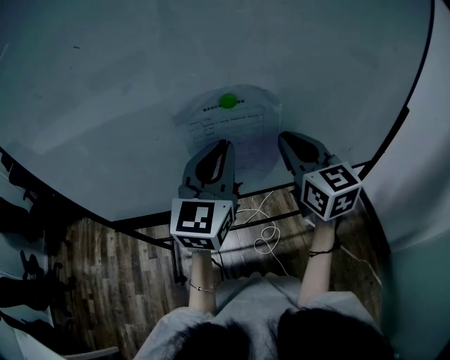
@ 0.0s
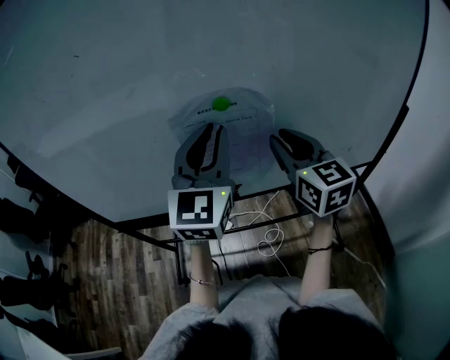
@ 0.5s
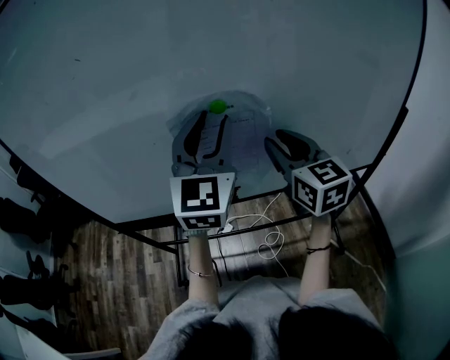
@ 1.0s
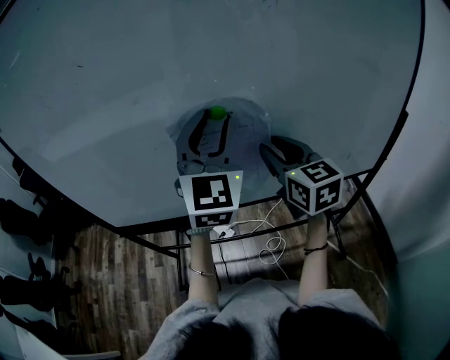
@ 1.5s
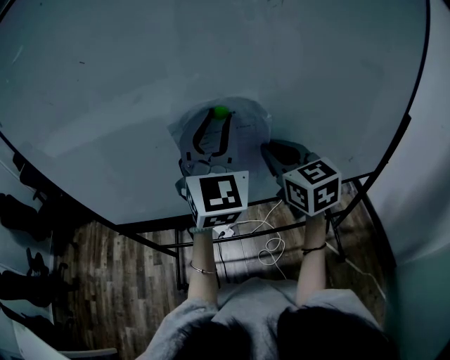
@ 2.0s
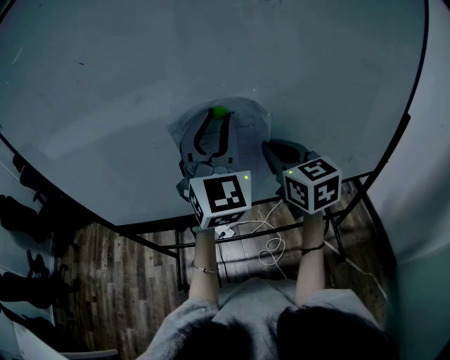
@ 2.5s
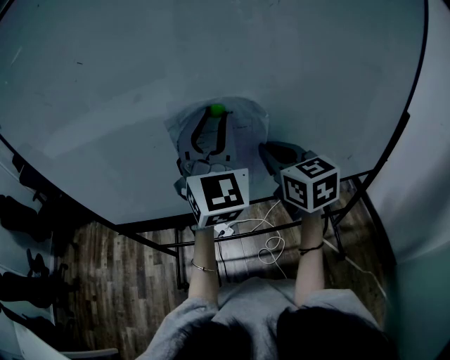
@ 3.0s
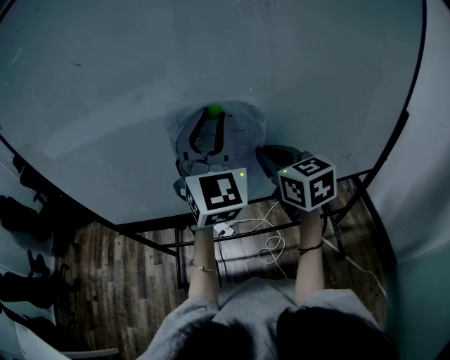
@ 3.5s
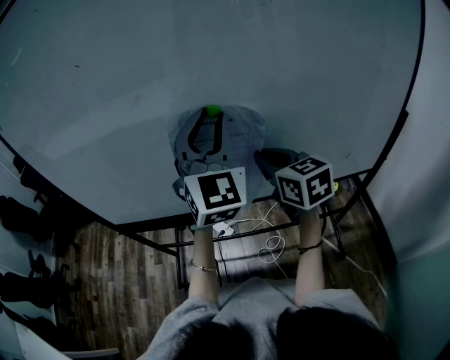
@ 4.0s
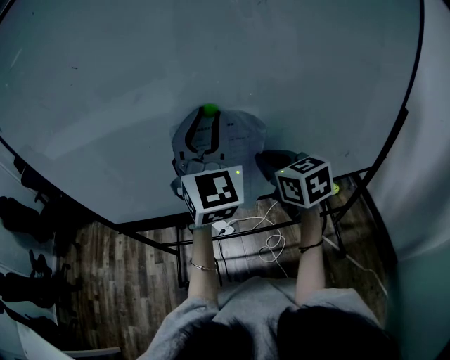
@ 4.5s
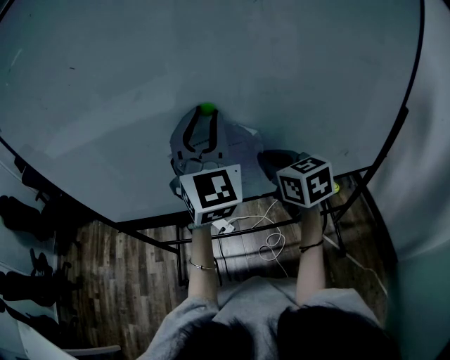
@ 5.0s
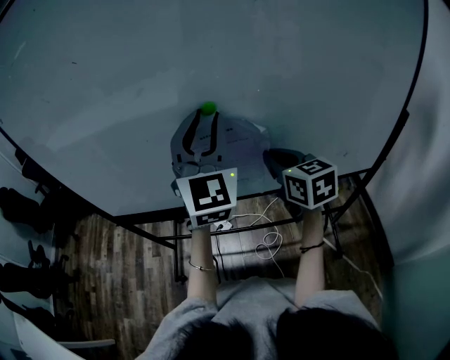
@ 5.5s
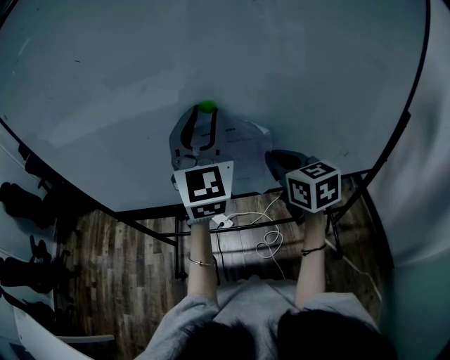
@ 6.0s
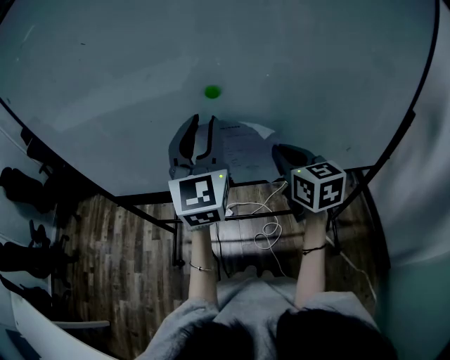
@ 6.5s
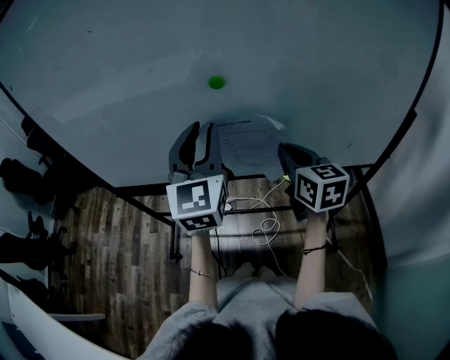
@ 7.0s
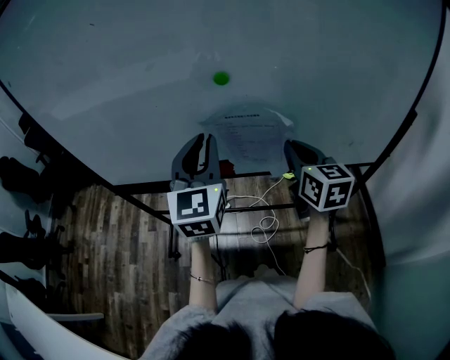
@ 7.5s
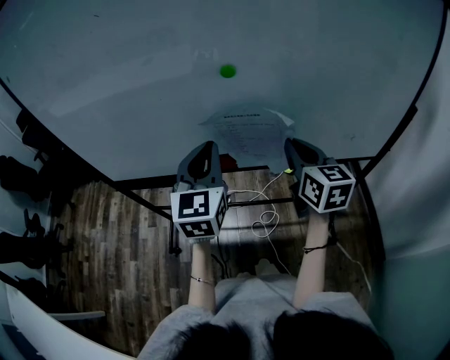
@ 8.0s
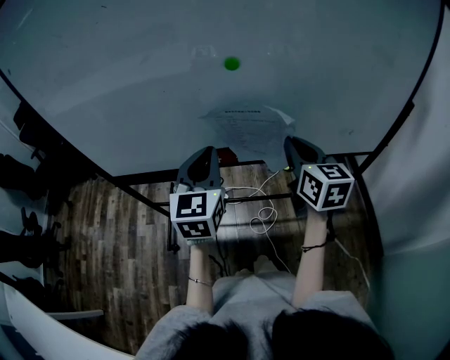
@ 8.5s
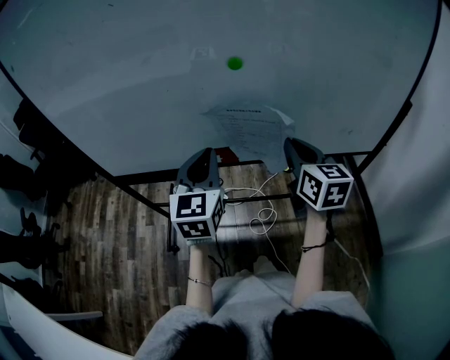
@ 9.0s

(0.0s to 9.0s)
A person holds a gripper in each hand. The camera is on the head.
0.0s - 2.0s: The left gripper goes some 5 cm upward, swivels some 30 degrees, and opens.
2.0s - 4.5s: The grippers move only a little.
4.5s - 7.0s: The left gripper travels downward by approximately 5 cm, and swivels some 20 degrees, while the right gripper shifts by some 5 cm.
7.0s - 9.0s: The left gripper shifts roughly 10 cm downward, and closes.

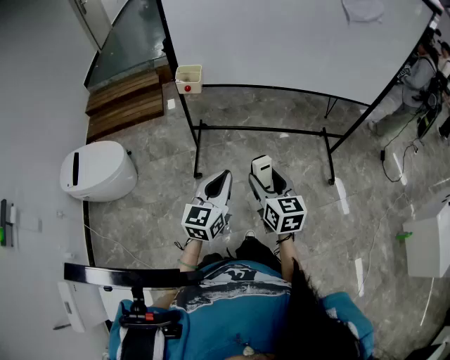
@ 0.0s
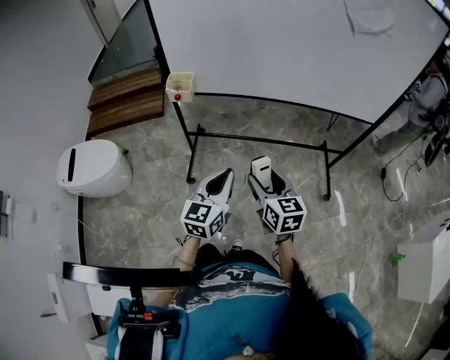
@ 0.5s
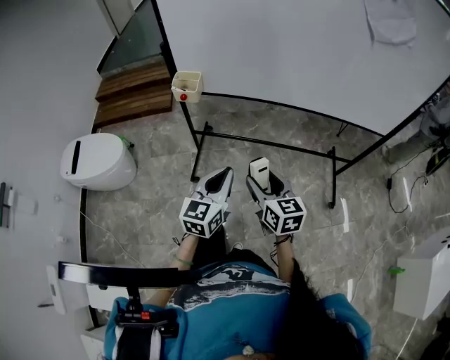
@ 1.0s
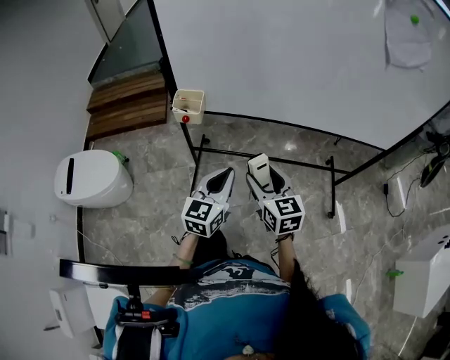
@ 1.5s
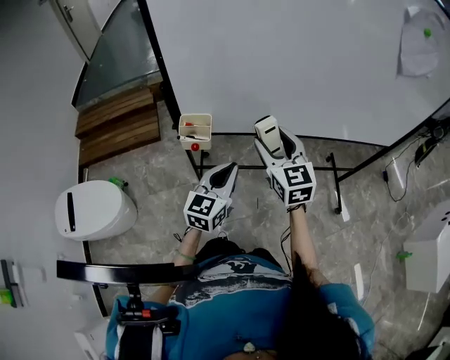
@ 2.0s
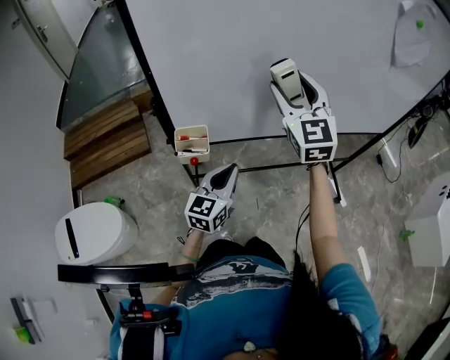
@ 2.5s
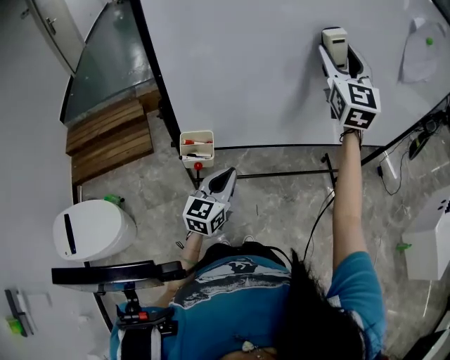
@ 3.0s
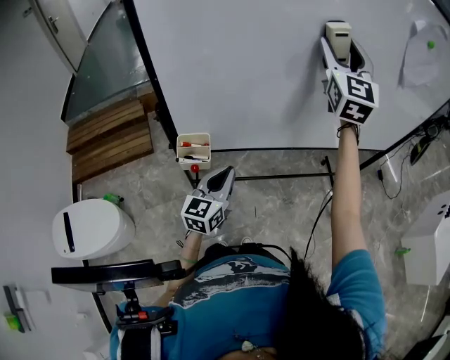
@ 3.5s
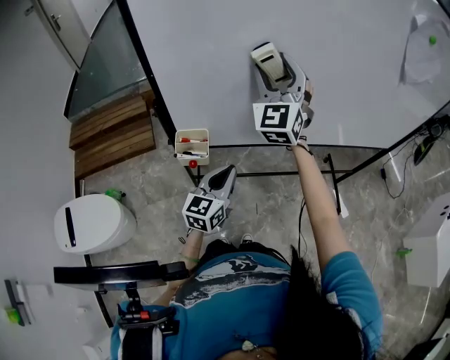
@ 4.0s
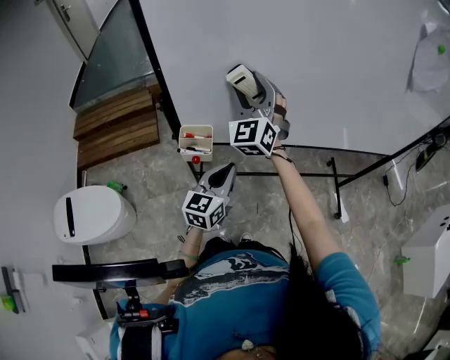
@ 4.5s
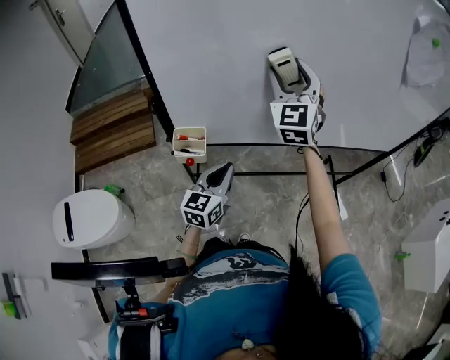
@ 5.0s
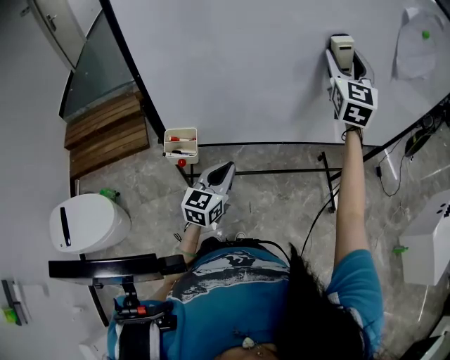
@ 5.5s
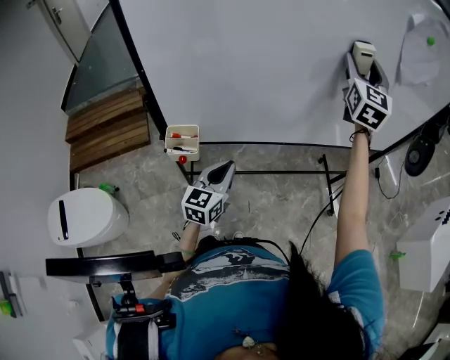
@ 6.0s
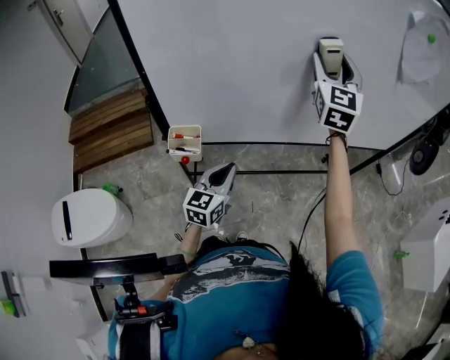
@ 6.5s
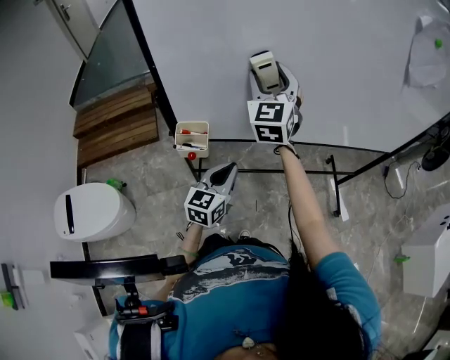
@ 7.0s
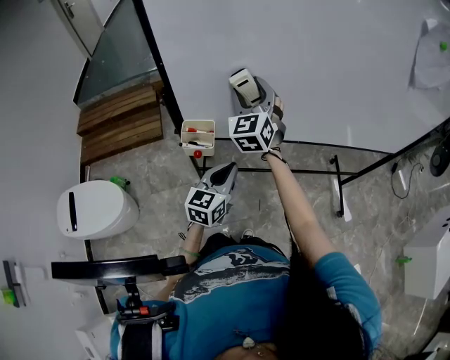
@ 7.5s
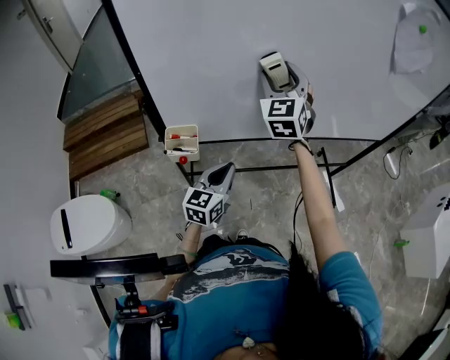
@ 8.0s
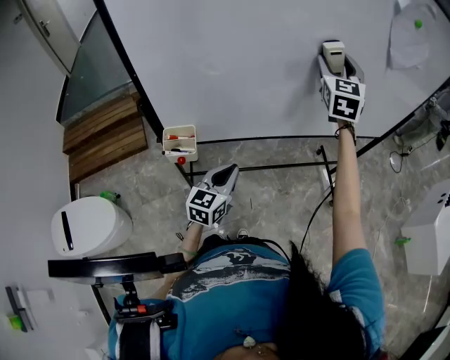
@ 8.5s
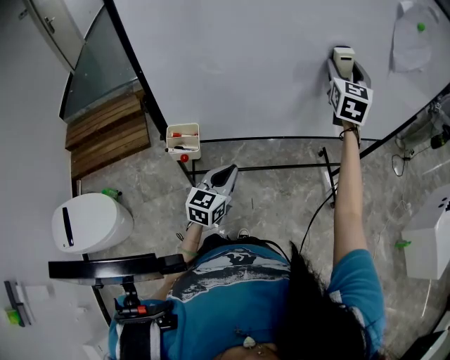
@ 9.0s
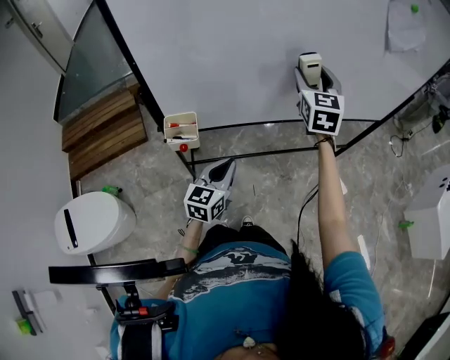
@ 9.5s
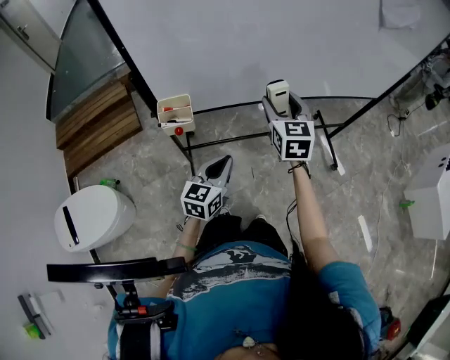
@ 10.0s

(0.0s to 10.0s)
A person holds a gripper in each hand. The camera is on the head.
0.0s - 2.0s: Both grippers travel together forward, roughly 35 cm. The right gripper swivels roughly 20 degrees.
2.0s - 4.0s: The right gripper shifts roughly 20 cm upward and forward, and turns by about 40 degrees, while the left gripper heads forward, covering some 5 cm.
4.0s - 6.0s: The right gripper is displaced to the right by some 25 cm, and rotates about 20 degrees.
6.0s - 8.0s: The right gripper goes some 20 cm to the left and downward, and changes its angle by approximately 20 degrees.
8.0s - 10.0s: The right gripper shifts approximately 20 cm downward, backward and to the right, and changes its angle by approximately 30 degrees; the left gripper heads backward, covering approximately 5 cm.

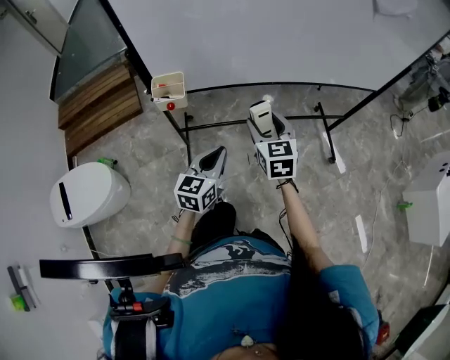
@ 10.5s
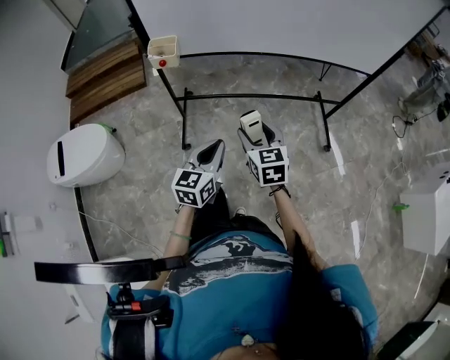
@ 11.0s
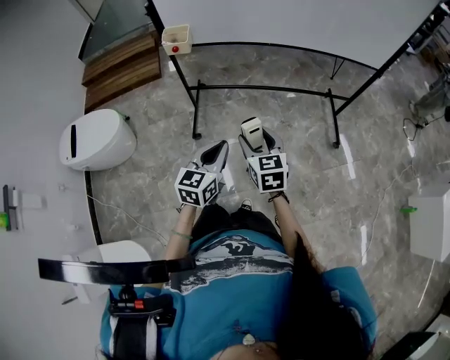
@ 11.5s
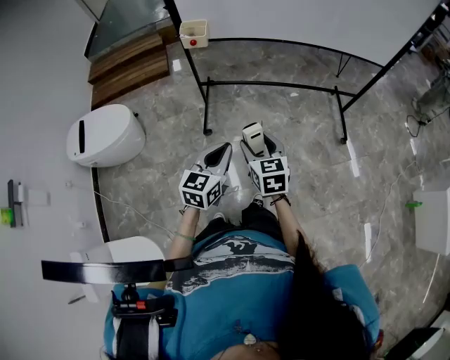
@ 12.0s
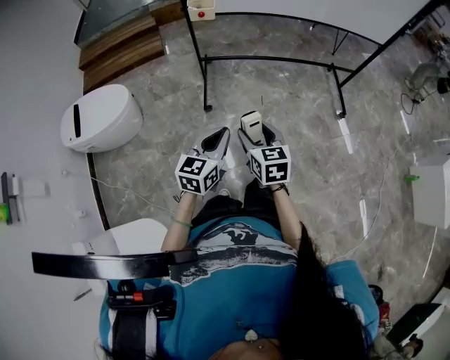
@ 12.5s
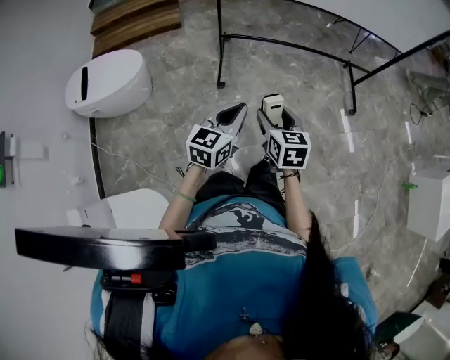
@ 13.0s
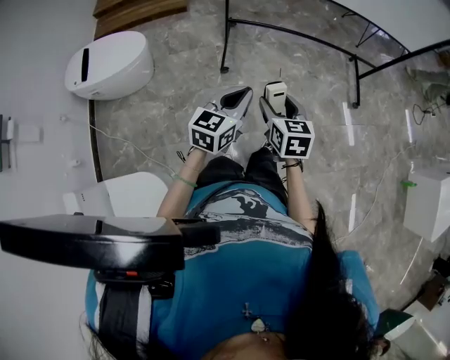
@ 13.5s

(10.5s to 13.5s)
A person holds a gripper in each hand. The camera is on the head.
10.5s - 12.0s: The two grippers go some 35 cm backward.
12.0s - 13.5s: The left gripper moves to the left and backward, roughly 15 cm. The right gripper shifts about 15 cm backward and to the left.

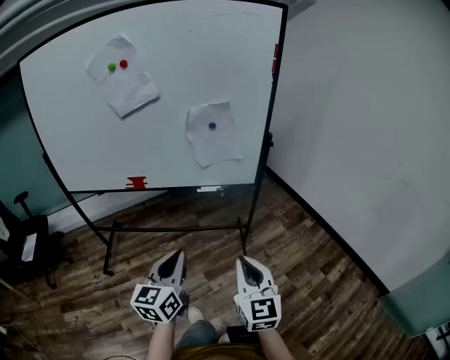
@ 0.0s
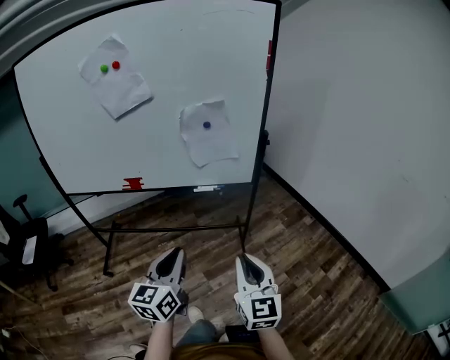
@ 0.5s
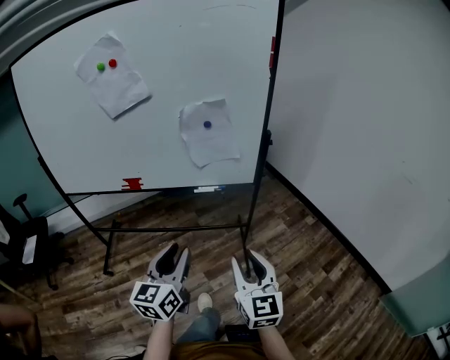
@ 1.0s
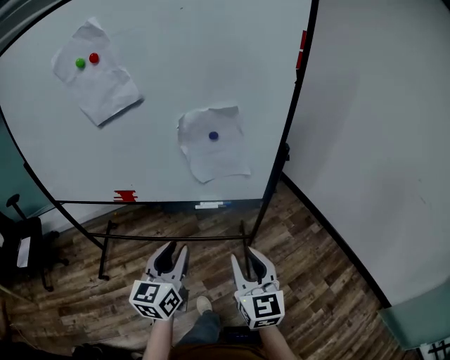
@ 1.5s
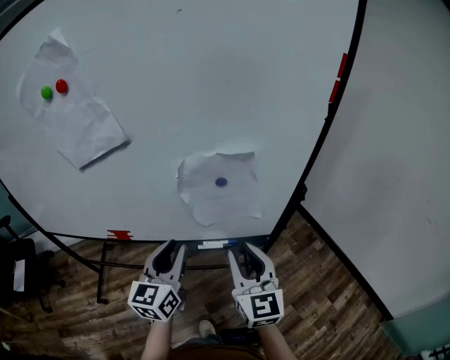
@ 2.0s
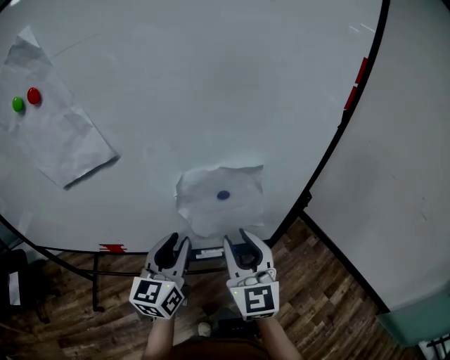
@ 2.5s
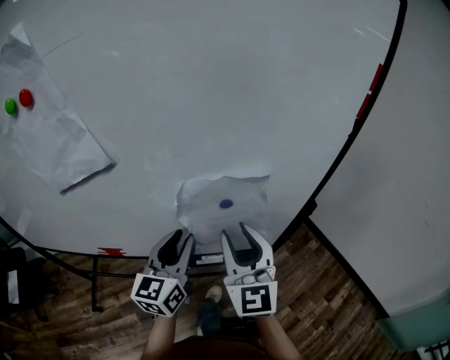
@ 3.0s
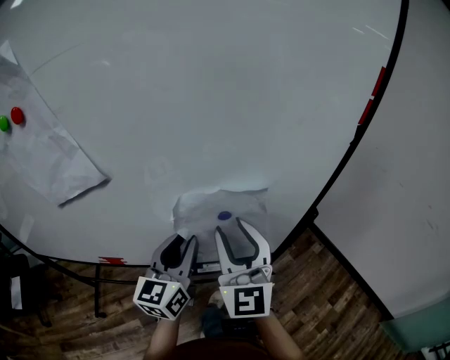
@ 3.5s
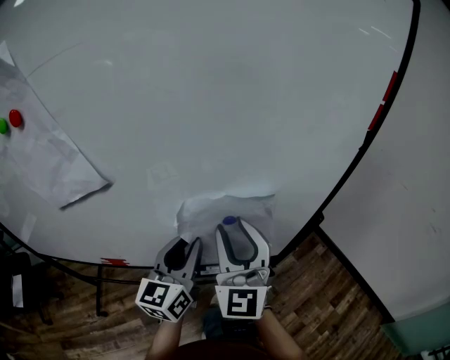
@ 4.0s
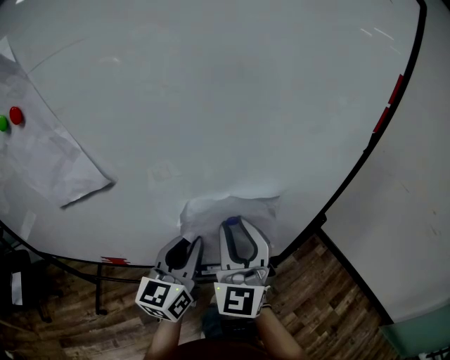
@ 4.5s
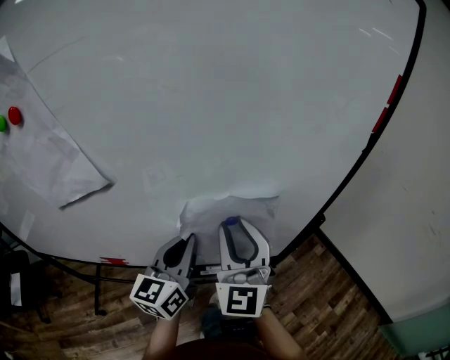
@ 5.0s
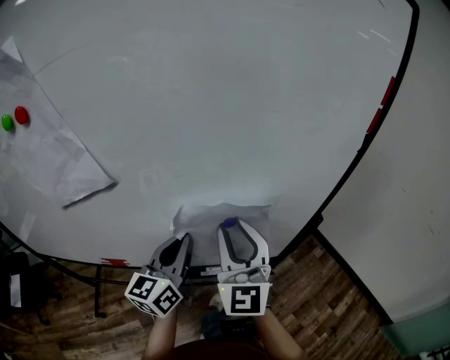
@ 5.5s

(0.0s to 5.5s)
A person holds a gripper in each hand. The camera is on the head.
0.0s - 2.0s: The grippers both shift forward by roughly 35 cm. The right gripper opens its fingers. The left gripper opens its fingers.
2.0s - 3.5s: The left gripper heads forward, covering about 10 cm, while the right gripper heads forward and upward, covering approximately 15 cm, and rotates some 20 degrees.
3.5s - 5.5s: The left gripper closes up.
